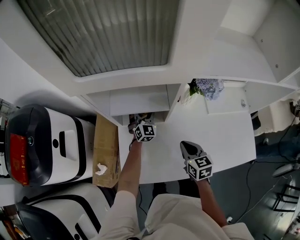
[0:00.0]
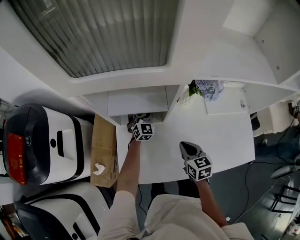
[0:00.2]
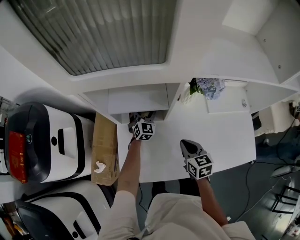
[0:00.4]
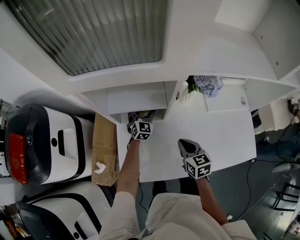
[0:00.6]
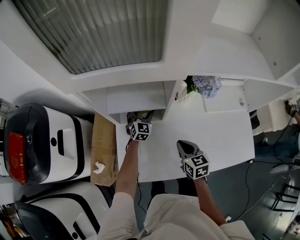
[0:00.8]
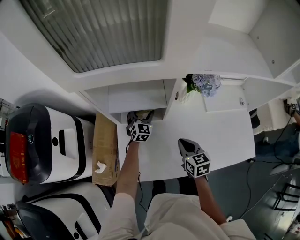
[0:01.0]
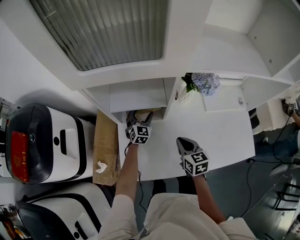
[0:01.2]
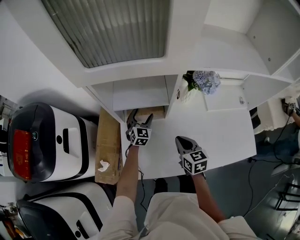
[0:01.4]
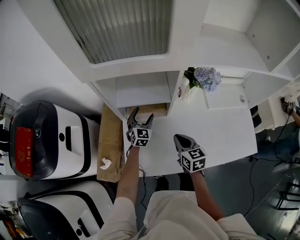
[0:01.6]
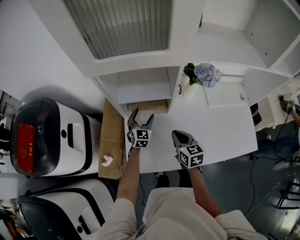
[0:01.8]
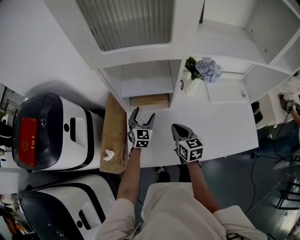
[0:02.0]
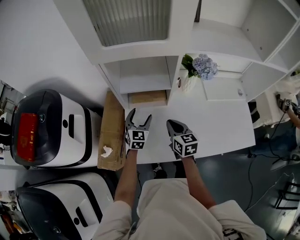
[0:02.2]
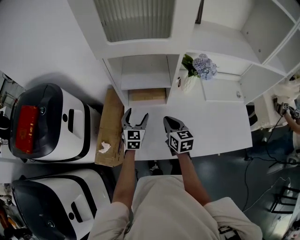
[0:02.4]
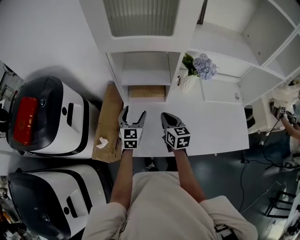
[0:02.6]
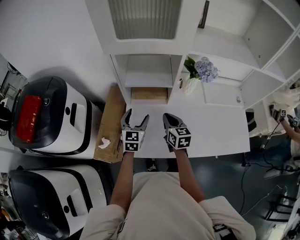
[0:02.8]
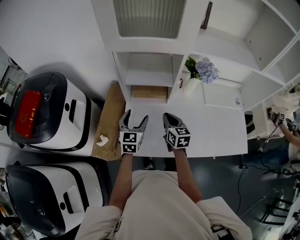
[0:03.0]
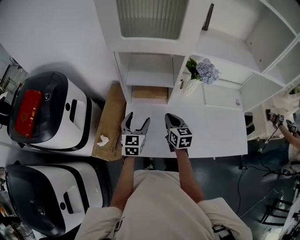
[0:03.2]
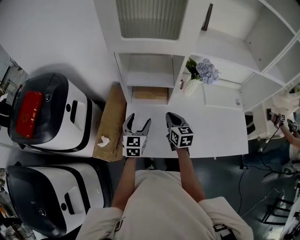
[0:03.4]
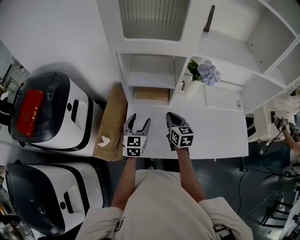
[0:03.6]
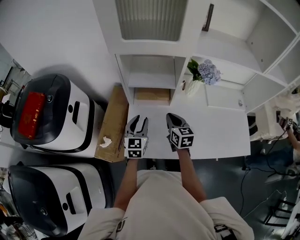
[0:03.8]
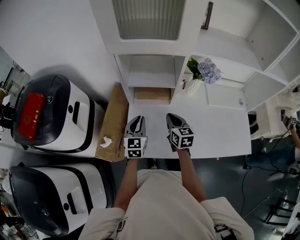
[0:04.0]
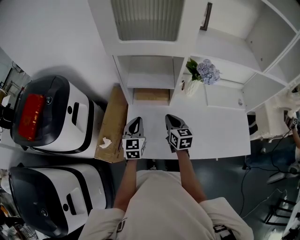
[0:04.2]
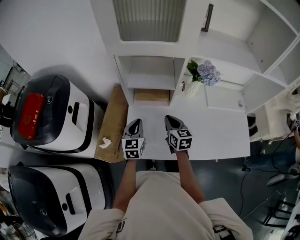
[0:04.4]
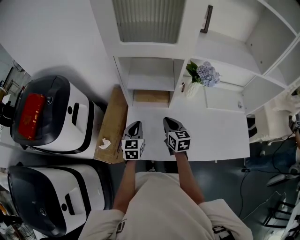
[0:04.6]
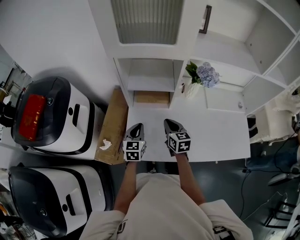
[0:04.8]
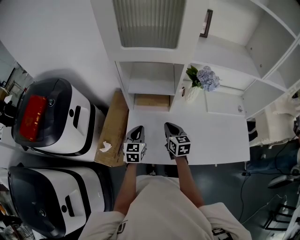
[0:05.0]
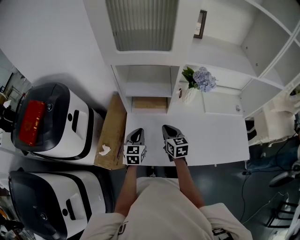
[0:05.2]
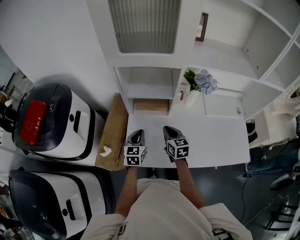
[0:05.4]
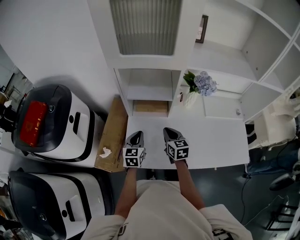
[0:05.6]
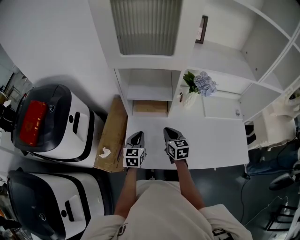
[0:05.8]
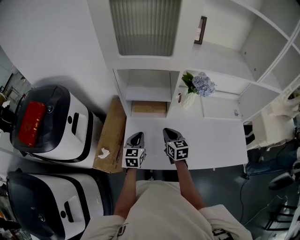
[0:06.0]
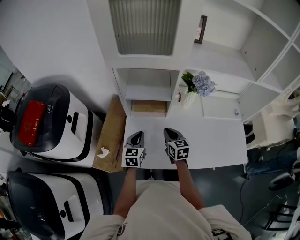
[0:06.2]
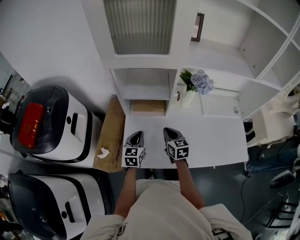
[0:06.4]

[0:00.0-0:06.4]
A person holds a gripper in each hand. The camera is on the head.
0:00.0 to 0:01.6: The right gripper shifts by some 5 cm, while the left gripper travels backward by some 5 cm.
0:01.6 to 0:03.2: The left gripper goes some 20 cm backward and upward, and rotates some 20 degrees; the right gripper moves some 5 cm.
0:03.2 to 0:04.8: The left gripper closes.
0:04.8 to 0:06.4: The grippers make only small movements.

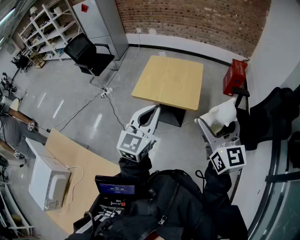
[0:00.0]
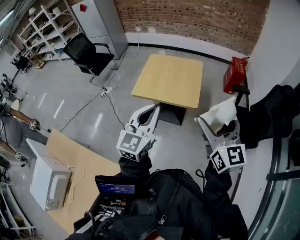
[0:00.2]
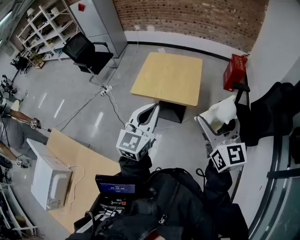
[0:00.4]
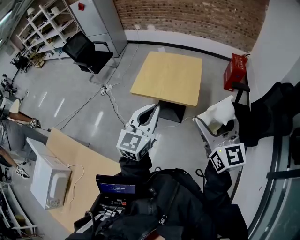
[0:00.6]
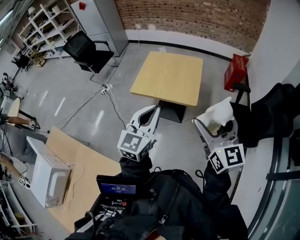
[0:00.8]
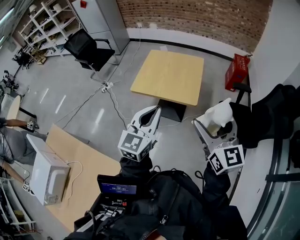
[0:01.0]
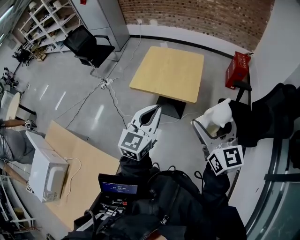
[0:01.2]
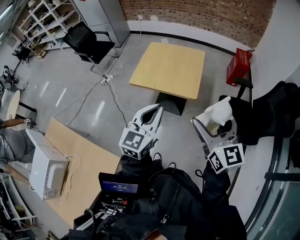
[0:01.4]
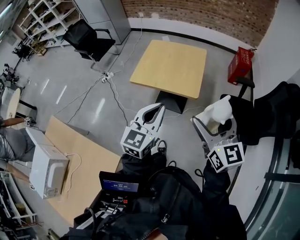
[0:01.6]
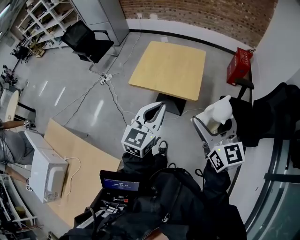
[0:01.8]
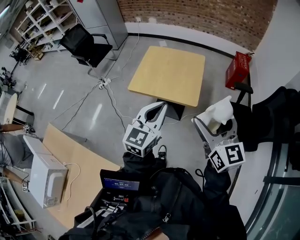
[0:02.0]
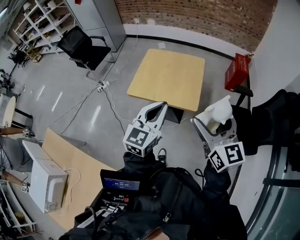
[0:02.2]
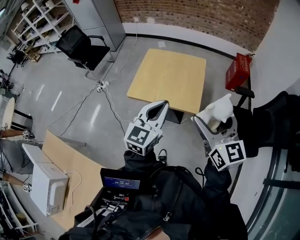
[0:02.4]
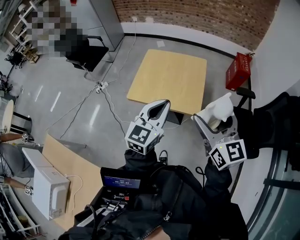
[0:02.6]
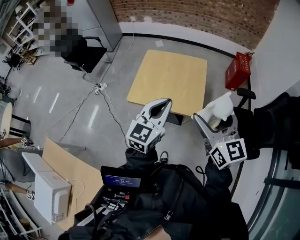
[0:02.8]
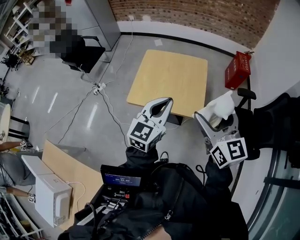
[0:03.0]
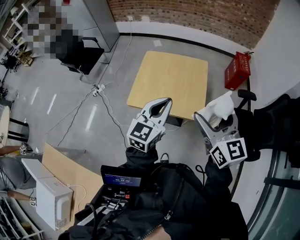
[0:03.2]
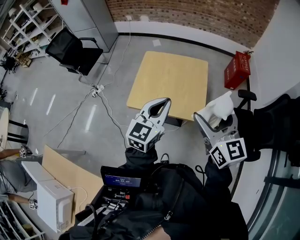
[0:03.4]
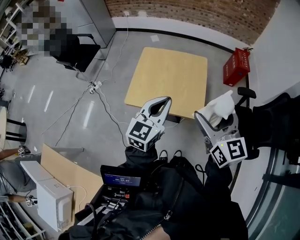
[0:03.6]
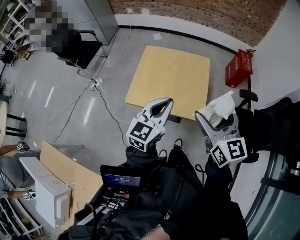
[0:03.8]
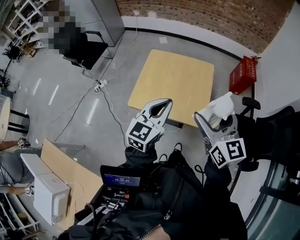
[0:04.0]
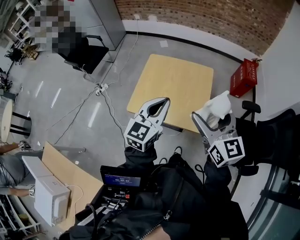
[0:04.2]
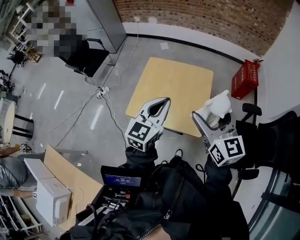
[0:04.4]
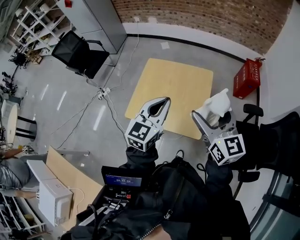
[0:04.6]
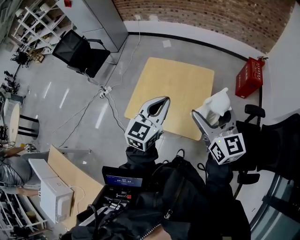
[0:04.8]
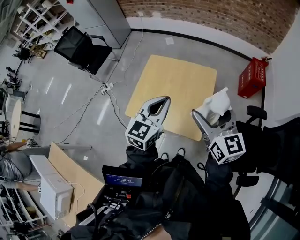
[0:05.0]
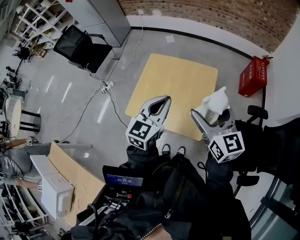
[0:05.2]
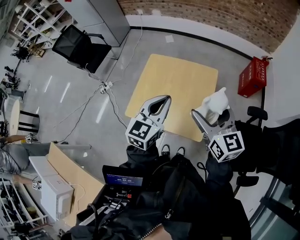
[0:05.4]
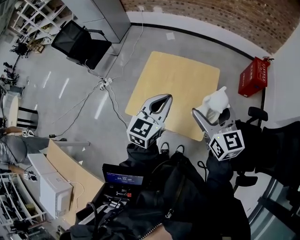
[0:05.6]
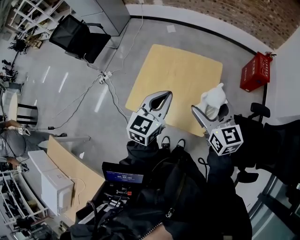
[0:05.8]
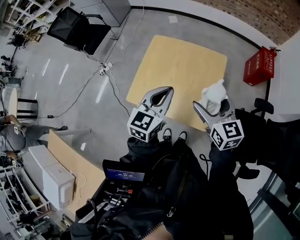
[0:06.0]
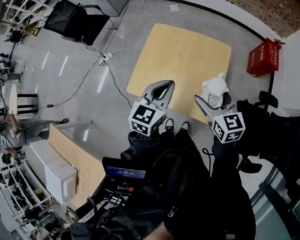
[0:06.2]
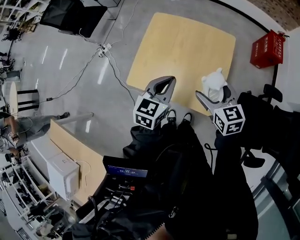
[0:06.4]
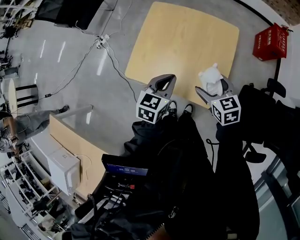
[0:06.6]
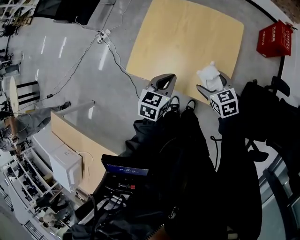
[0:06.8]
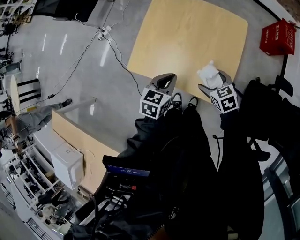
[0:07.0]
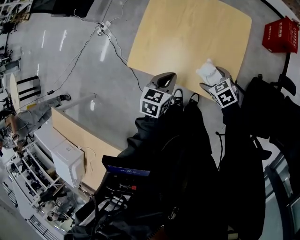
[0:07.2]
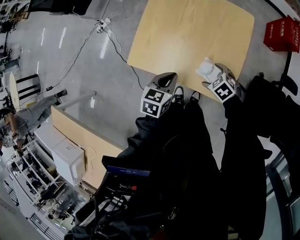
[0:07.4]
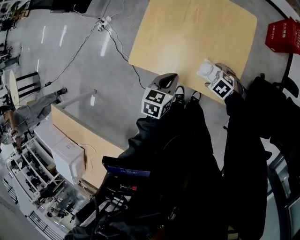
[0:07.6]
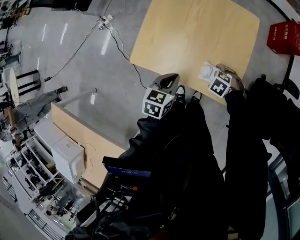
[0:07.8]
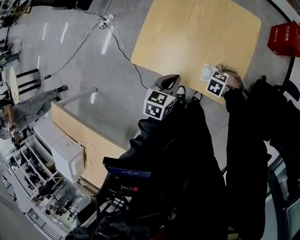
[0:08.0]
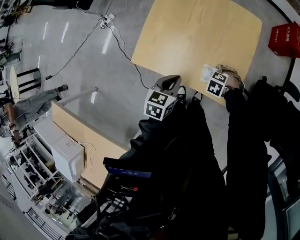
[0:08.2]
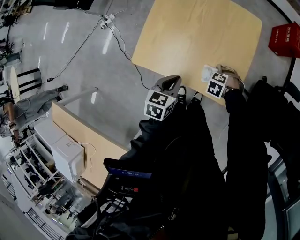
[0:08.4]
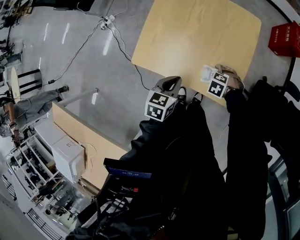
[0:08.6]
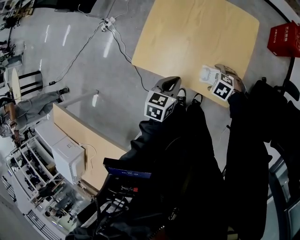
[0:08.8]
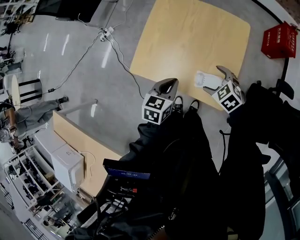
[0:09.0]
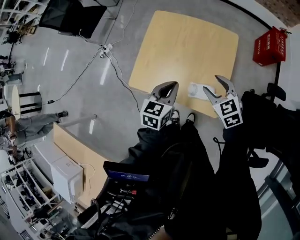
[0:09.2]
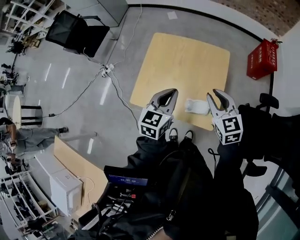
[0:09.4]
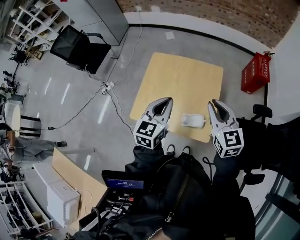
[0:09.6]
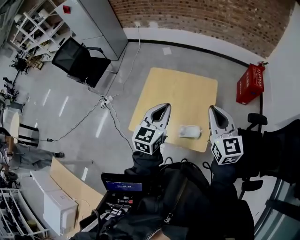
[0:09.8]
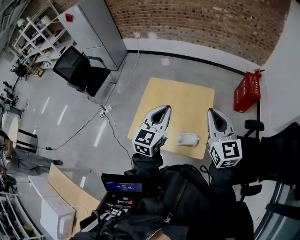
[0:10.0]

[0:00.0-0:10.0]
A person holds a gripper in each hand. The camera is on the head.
0:00.0 to 0:01.4: The right gripper ends up approximately 5 cm from where it was, while the left gripper shifts by roughly 5 cm.
0:01.4 to 0:02.8: The grippers both shift forward by some 20 cm.
0:02.8 to 0:04.2: The grippers both shift forward by about 10 cm.
0:04.2 to 0:05.8: The right gripper heads forward and downward, covering approximately 15 cm. Meanwhile the left gripper shifts roughly 10 cm forward.
0:05.8 to 0:07.2: Both grippers travel together downward, about 30 cm. The right gripper angles its fingers downward, by approximately 40 degrees. The left gripper changes its angle by about 30 degrees.
0:07.2 to 0:08.6: The right gripper travels downward by approximately 10 cm, and changes its angle by about 50 degrees.
0:08.6 to 0:10.0: The left gripper is displaced upward by some 30 cm, and tilts its fingers approximately 40 degrees upward; the right gripper travels upward by approximately 50 cm, tilts its fingers roughly 80 degrees upward, and closes up.

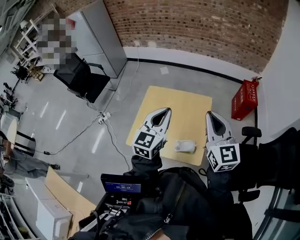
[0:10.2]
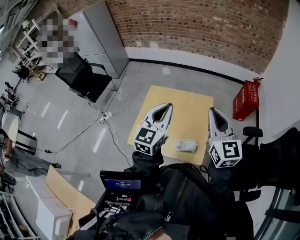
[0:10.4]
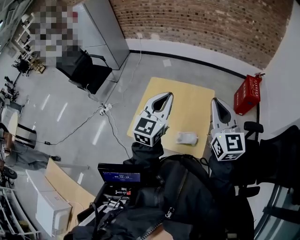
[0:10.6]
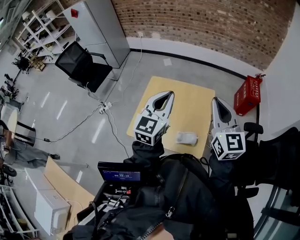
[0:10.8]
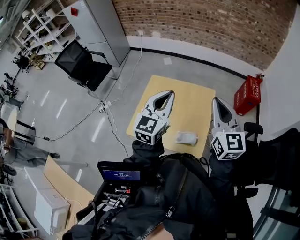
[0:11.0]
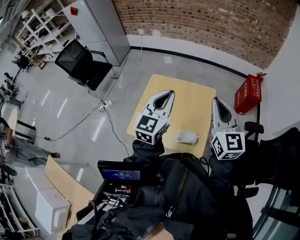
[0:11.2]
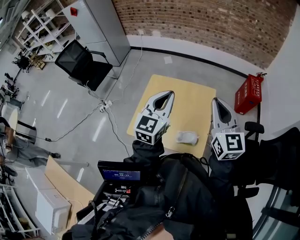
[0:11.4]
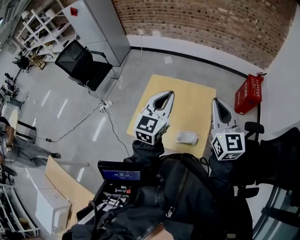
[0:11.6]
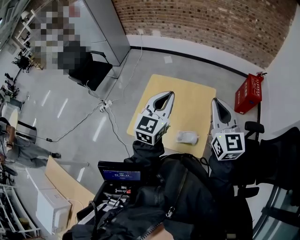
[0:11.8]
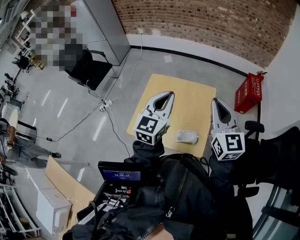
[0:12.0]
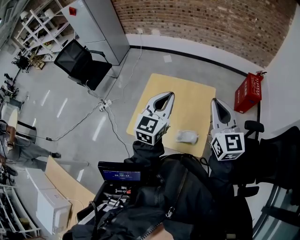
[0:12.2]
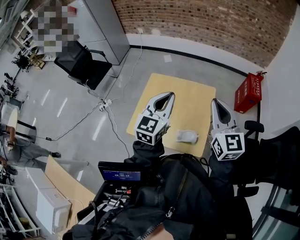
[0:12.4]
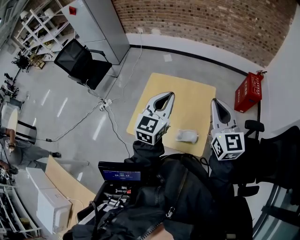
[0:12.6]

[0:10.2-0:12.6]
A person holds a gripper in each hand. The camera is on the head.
0:10.2 to 0:11.4: The grippers move only a little.
0:11.4 to 0:12.6: Both grippers stay put.

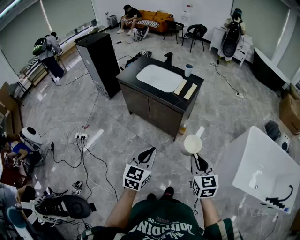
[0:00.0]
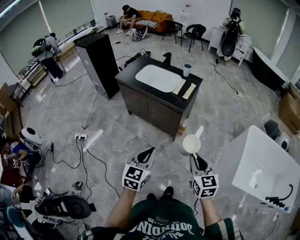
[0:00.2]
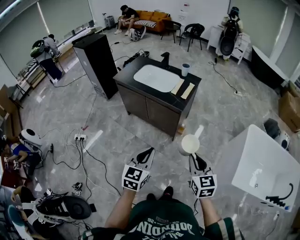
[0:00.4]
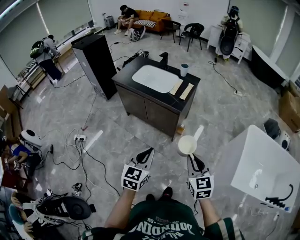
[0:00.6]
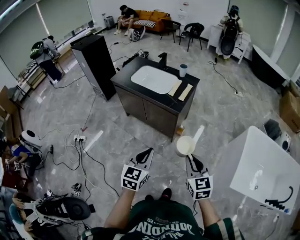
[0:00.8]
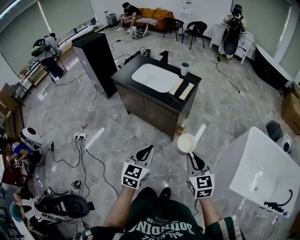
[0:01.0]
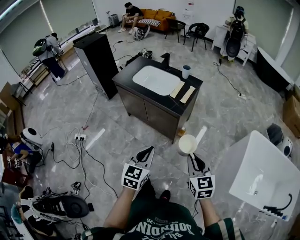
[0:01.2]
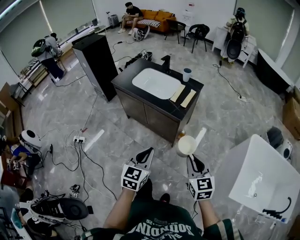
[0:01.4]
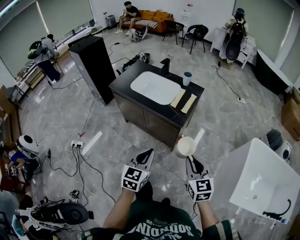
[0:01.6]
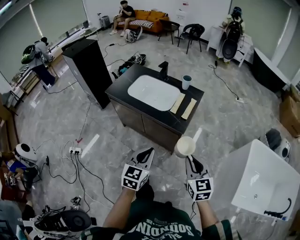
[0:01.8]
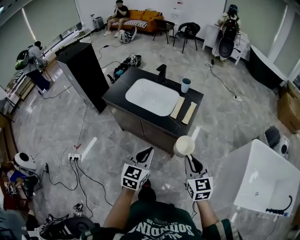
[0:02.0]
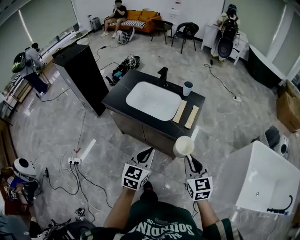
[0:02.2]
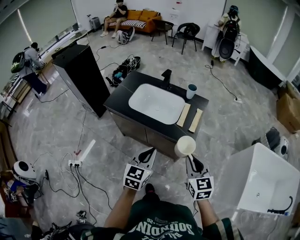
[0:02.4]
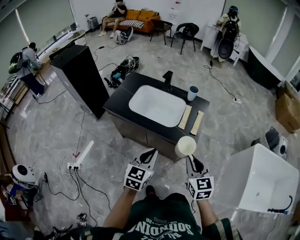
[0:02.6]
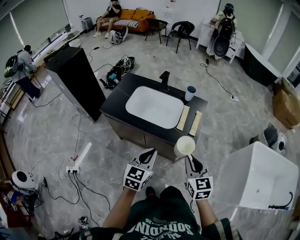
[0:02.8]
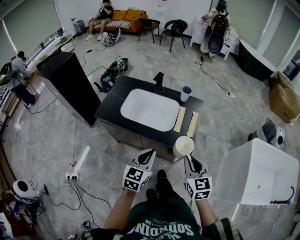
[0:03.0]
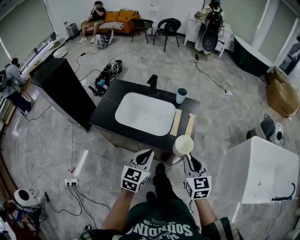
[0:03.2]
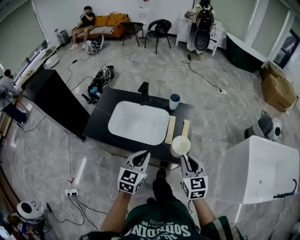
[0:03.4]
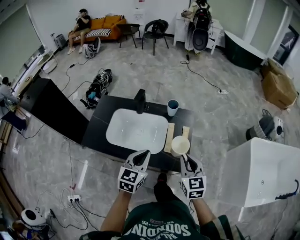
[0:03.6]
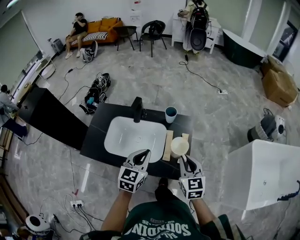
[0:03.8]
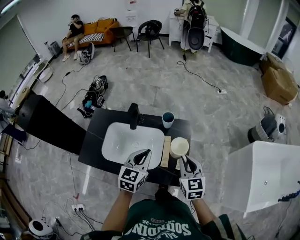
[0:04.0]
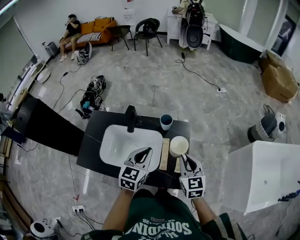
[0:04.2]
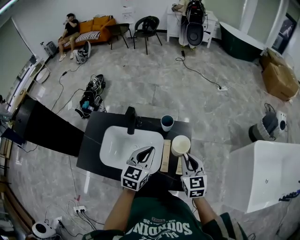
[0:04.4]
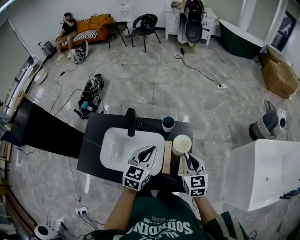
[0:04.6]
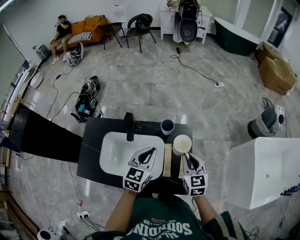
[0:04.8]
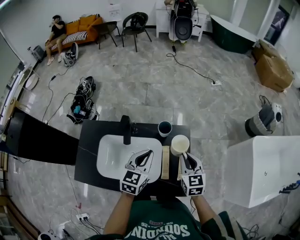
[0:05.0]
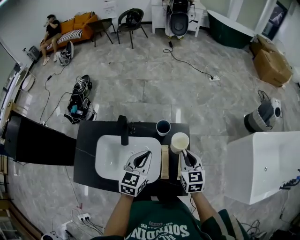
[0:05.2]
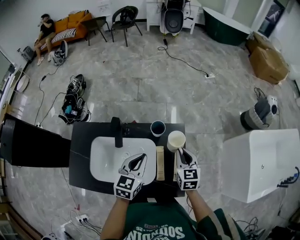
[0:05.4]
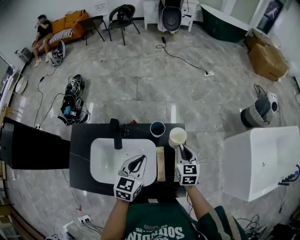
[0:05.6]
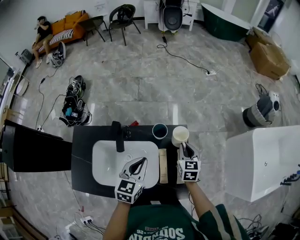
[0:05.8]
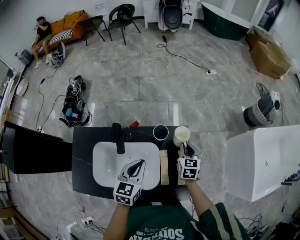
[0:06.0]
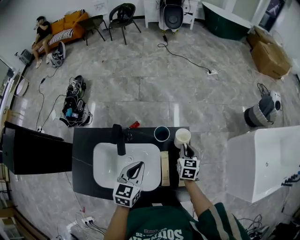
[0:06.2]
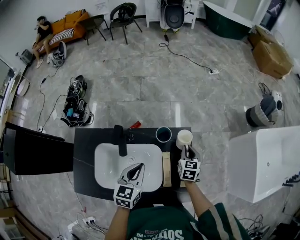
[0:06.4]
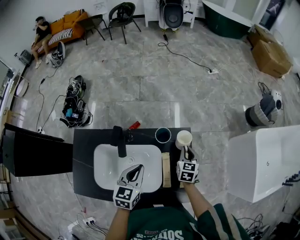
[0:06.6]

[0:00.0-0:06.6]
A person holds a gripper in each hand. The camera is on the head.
0:00.0 to 0:01.6: Both grippers move forward, roughly 15 cm.
0:01.6 to 0:03.2: Both grippers travel together forward and to the left, approximately 30 cm.
0:03.2 to 0:05.0: The grippers both shift forward by approximately 35 cm.
0:05.0 to 0:06.6: The left gripper moves downward, some 5 cm. Meanwhile the right gripper travels downward and forward by about 20 cm, and changes its angle by some 20 degrees.
